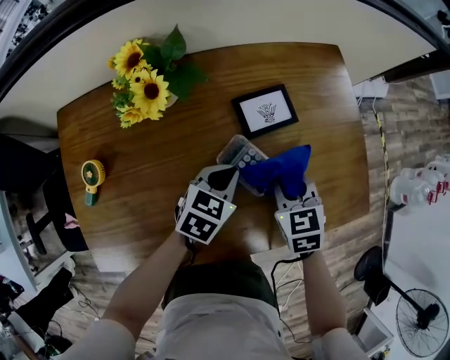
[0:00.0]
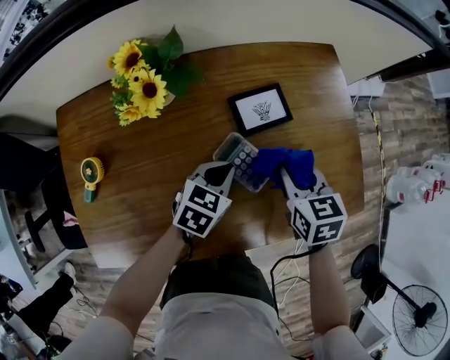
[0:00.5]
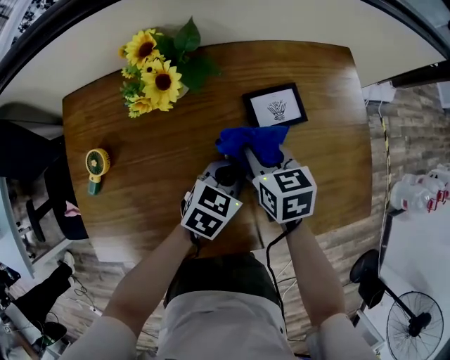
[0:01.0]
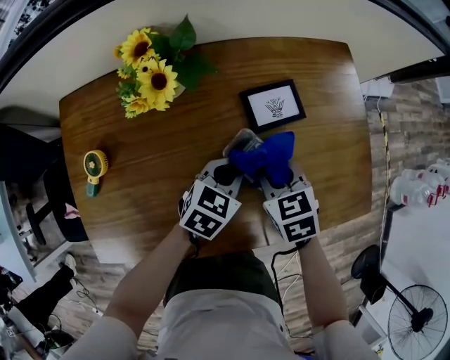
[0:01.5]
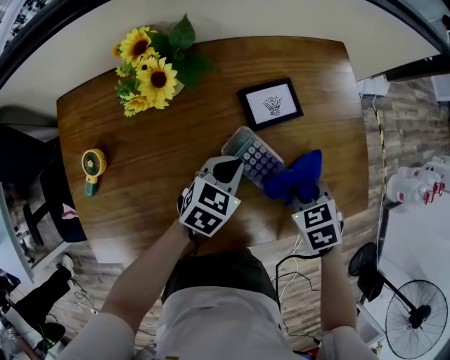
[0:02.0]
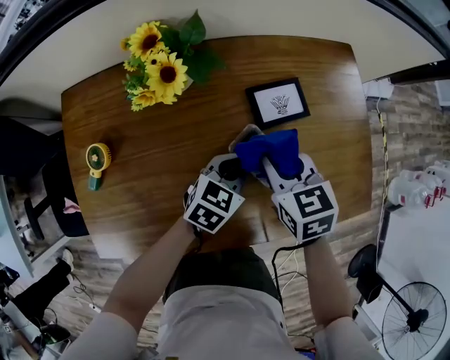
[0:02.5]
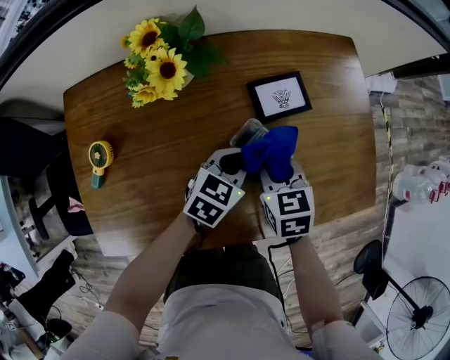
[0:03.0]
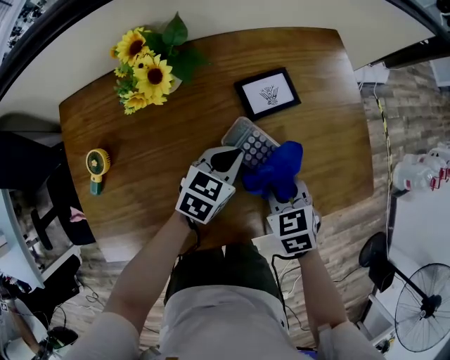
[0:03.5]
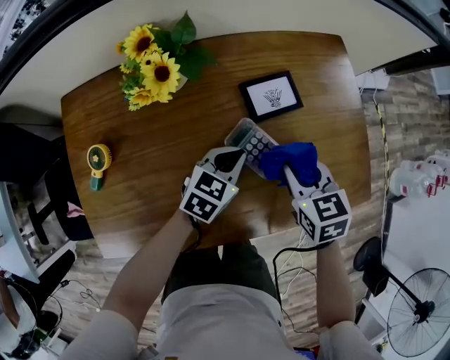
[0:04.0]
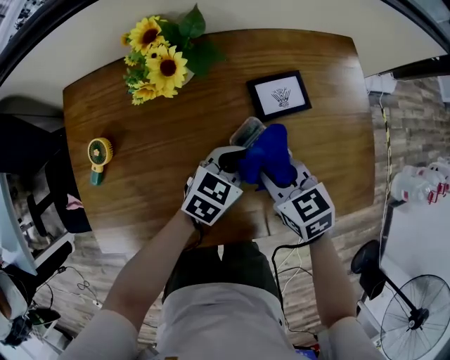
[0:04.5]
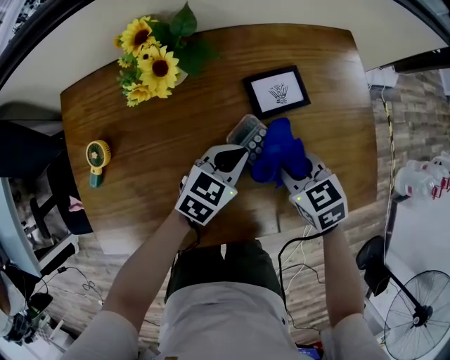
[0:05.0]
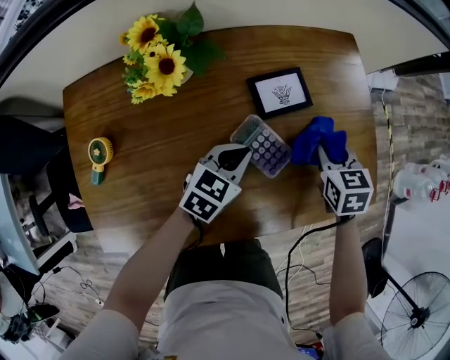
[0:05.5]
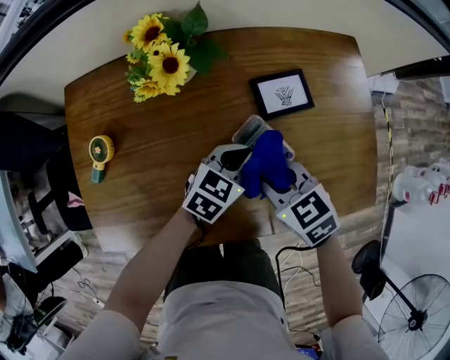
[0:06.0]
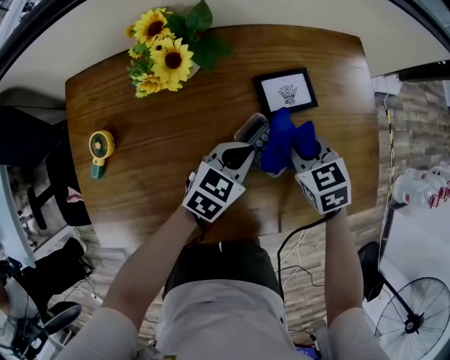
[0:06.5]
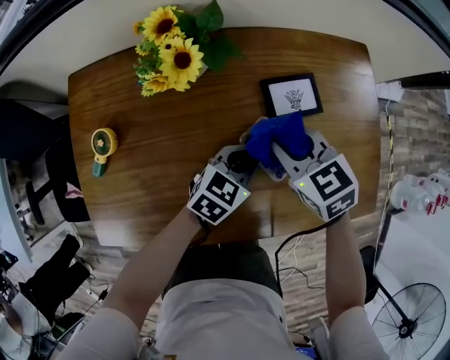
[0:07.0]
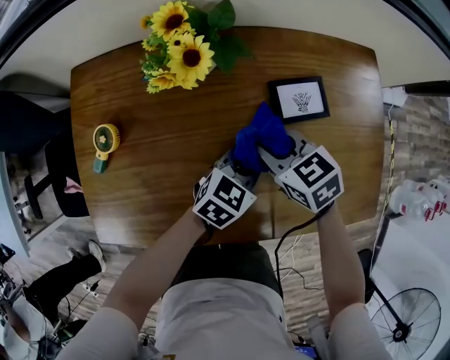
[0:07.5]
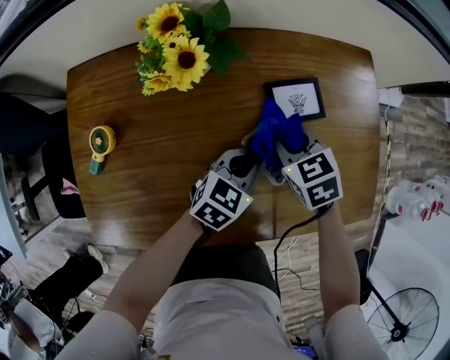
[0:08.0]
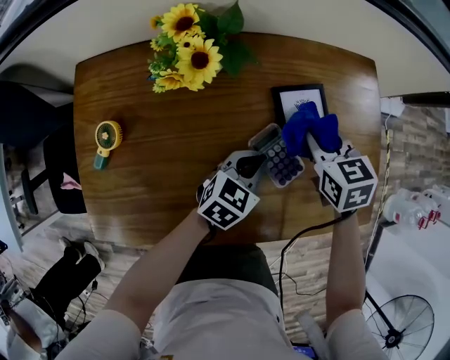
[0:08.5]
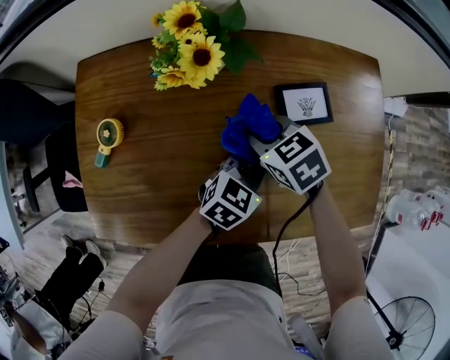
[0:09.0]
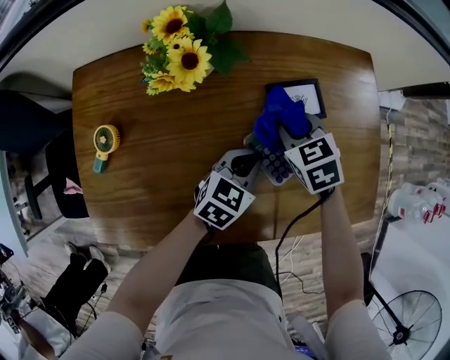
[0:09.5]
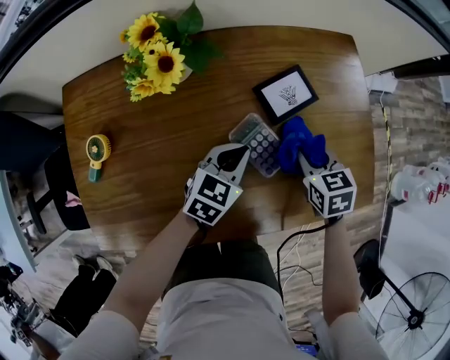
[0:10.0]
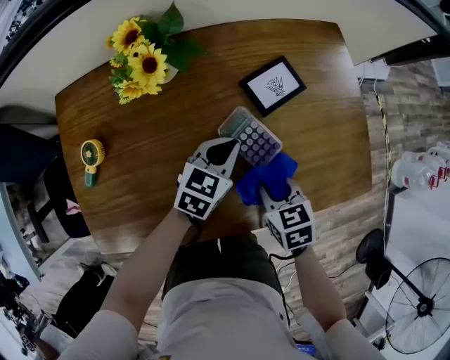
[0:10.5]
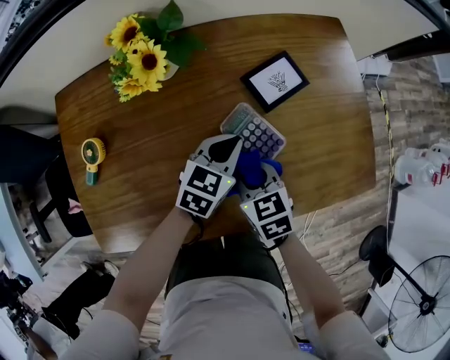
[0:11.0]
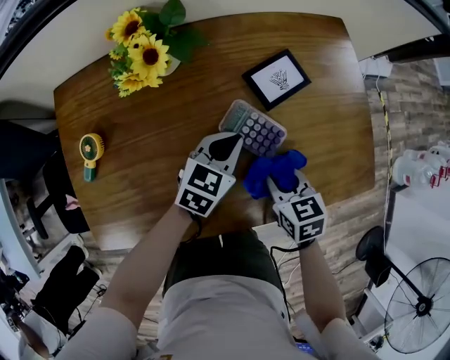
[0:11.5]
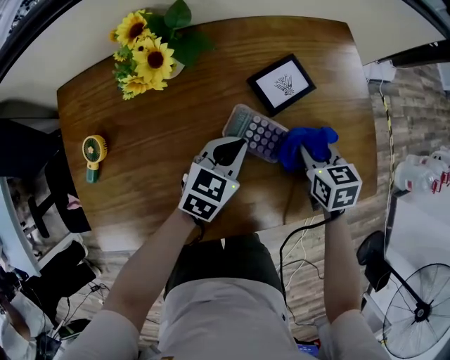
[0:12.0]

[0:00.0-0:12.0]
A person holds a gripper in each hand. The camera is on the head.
0:00.0 to 0:02.0: The right gripper goes to the left and returns, about 10 cm each way, and changes its angle by roughly 20 degrees.
0:02.0 to 0:04.0: The right gripper goes some 10 cm upward and to the left, and swivels roughly 20 degrees.
0:04.0 to 0:06.0: The right gripper moves left and right over some 15 cm, changing direction 2 times, and rotates roughly 30 degrees.
0:06.0 to 0:08.0: The right gripper swings left and right, approximately 10 cm each way, with 2 reversals.
0:08.0 to 0:10.0: The right gripper goes left and right, about 20 cm each way, reversing 2 times.
0:10.0 to 0:12.0: The right gripper goes to the left and returns, some 15 cm each way.

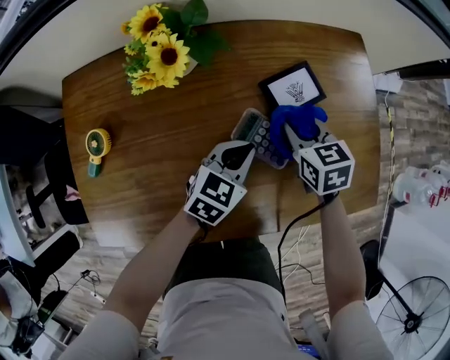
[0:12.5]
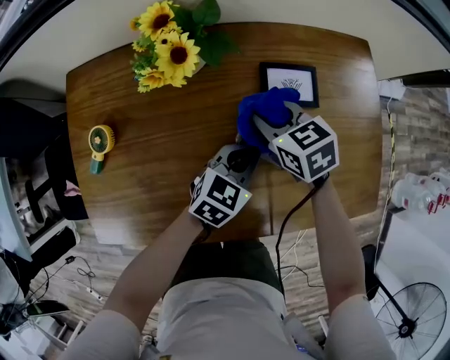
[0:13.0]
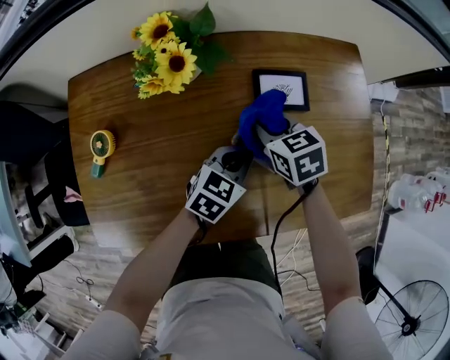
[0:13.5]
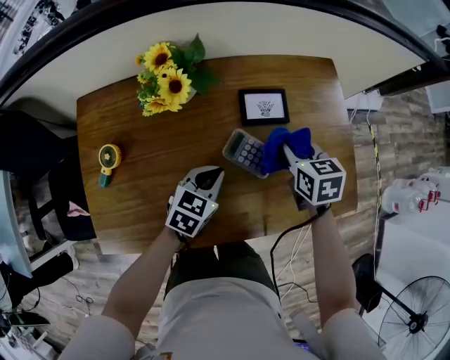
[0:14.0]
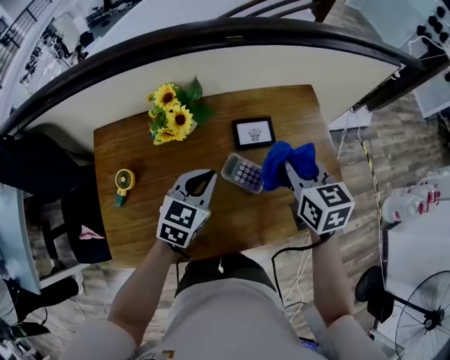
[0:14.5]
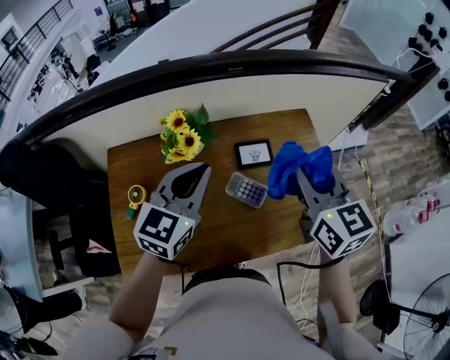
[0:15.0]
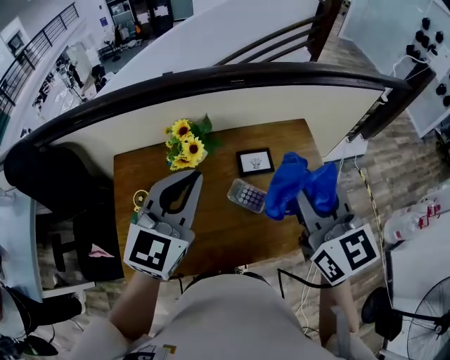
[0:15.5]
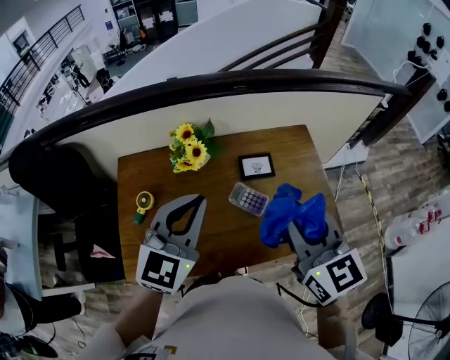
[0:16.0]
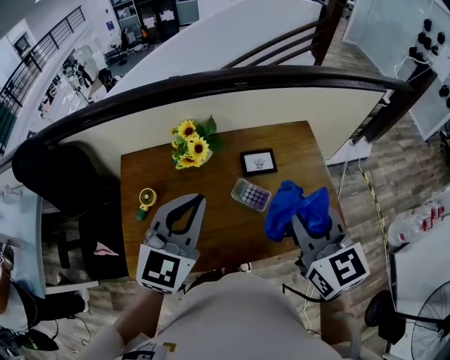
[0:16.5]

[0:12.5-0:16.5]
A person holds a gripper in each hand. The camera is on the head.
0:12.5 to 0:14.5: Both grippers move upward, roughly 20 cm.
0:14.5 to 0:16.5: The grippers both shift upward and backward by roughly 25 cm. The left gripper turns by about 20 degrees.

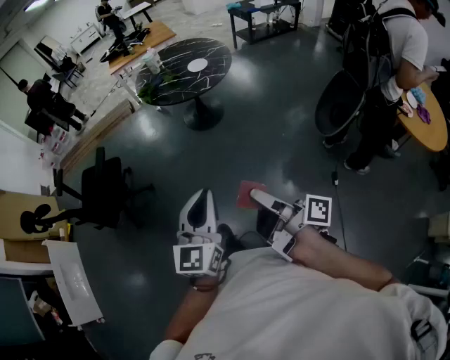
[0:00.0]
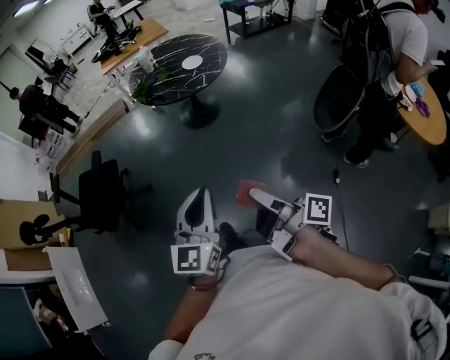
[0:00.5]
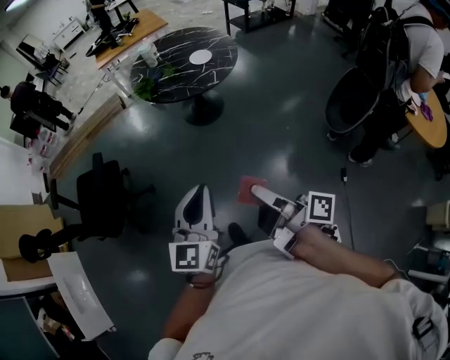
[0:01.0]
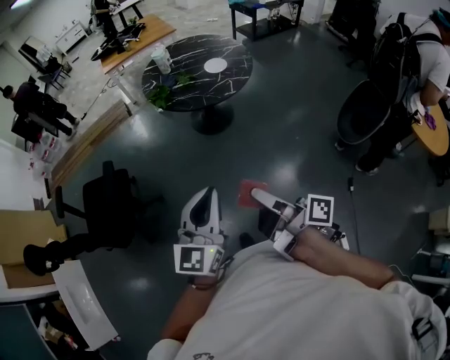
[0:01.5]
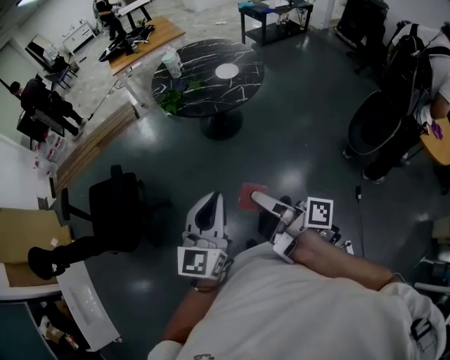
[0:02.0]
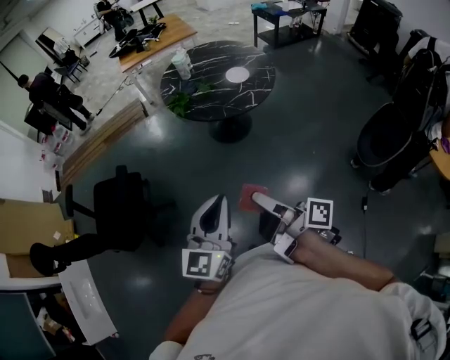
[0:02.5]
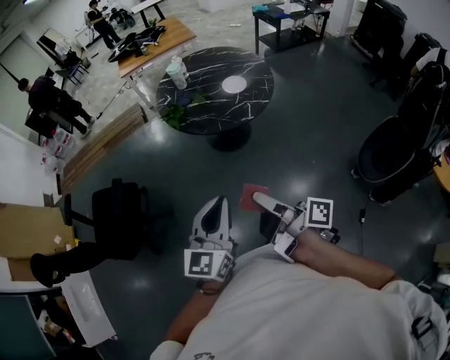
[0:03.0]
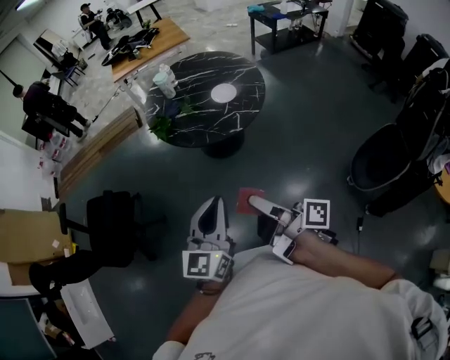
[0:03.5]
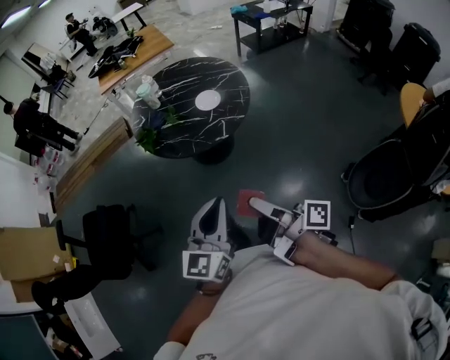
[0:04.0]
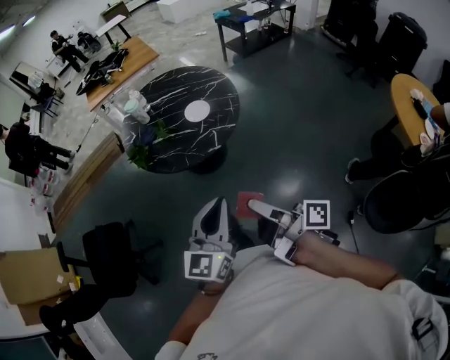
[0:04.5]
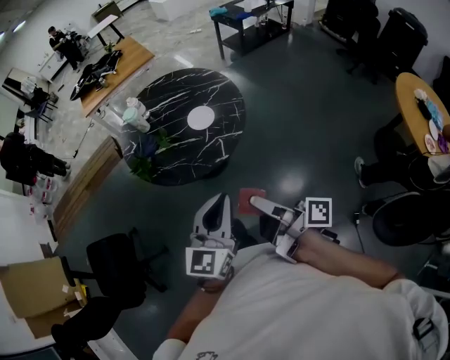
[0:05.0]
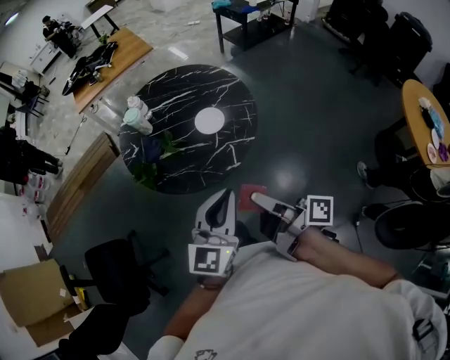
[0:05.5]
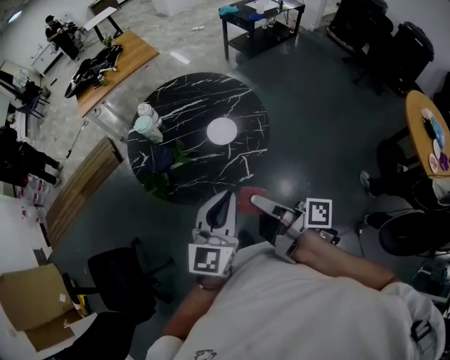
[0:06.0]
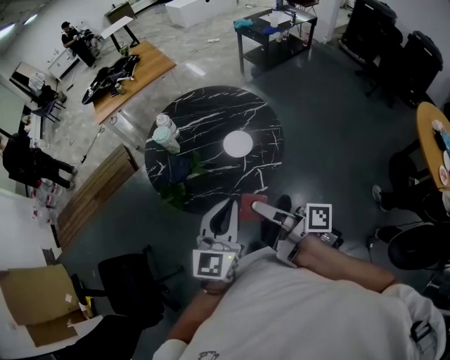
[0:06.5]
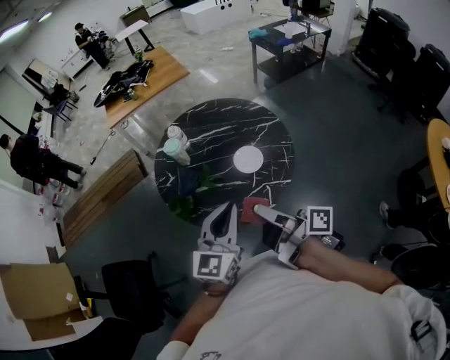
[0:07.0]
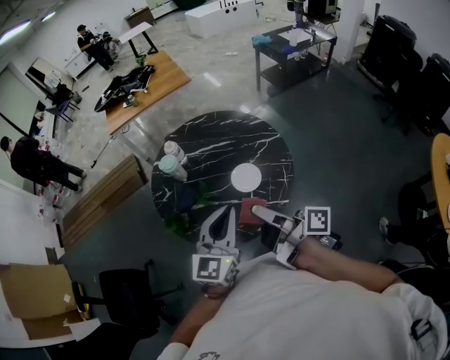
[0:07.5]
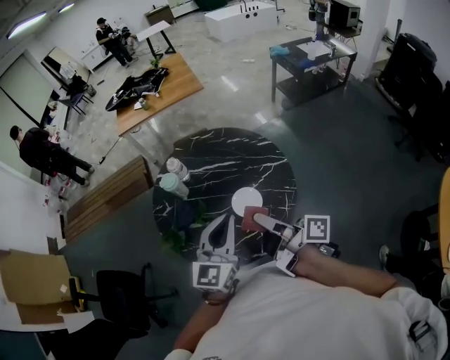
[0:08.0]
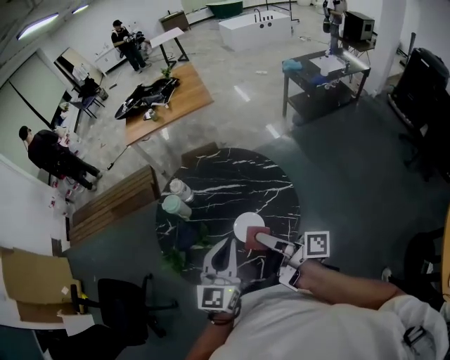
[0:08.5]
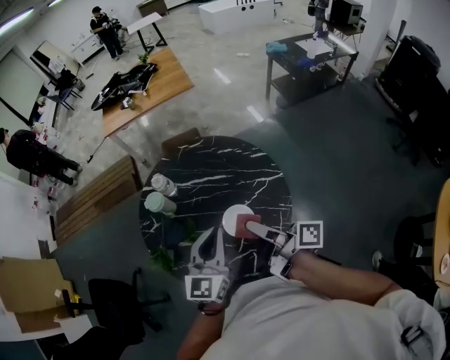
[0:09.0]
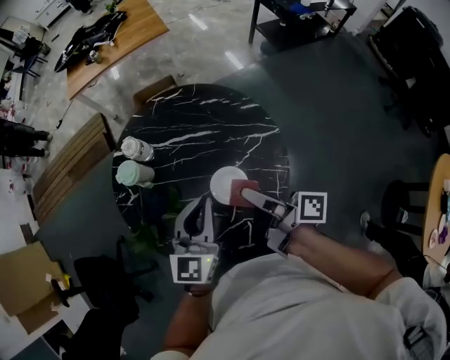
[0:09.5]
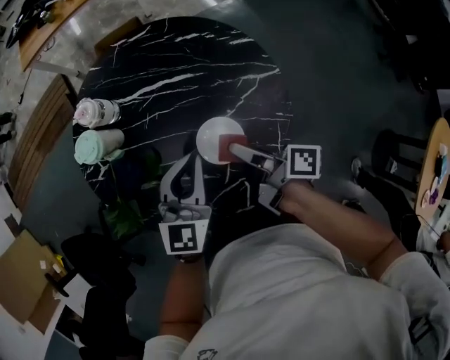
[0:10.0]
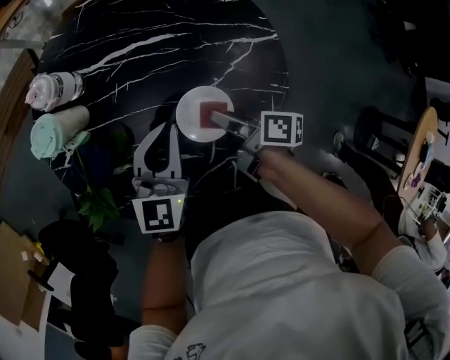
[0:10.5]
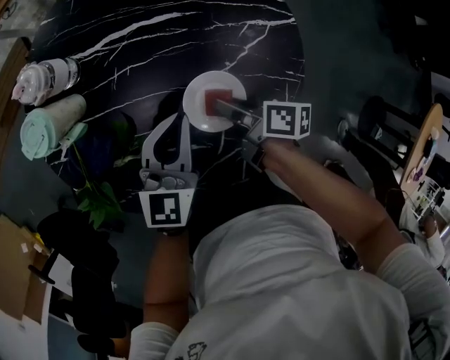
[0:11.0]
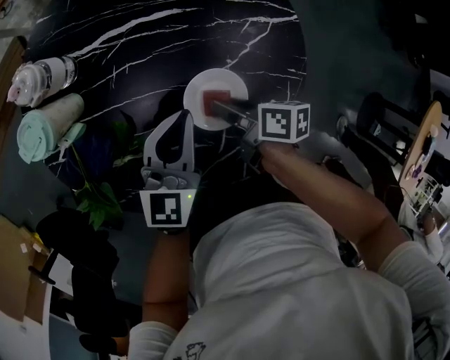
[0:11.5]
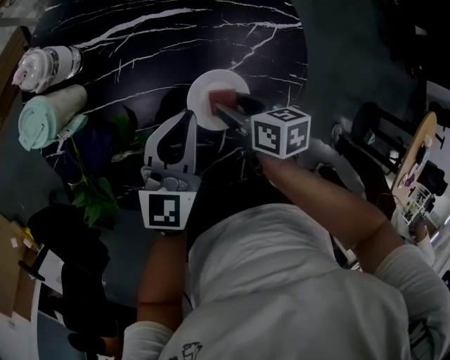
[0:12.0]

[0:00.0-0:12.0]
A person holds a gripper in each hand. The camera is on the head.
0:00.0 to 0:02.0: The left gripper moves about 30 cm.
0:02.0 to 0:04.0: The left gripper moves about 30 cm.
0:04.0 to 0:06.0: The left gripper shifts by about 30 cm.
0:06.0 to 0:08.0: The left gripper changes place by about 25 cm.
0:08.0 to 0:10.0: The left gripper shifts about 25 cm downward.
0:10.0 to 0:12.0: The left gripper moves downward, some 10 cm.
